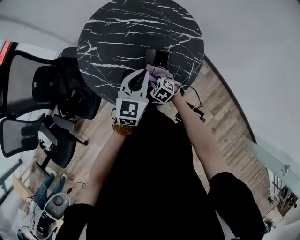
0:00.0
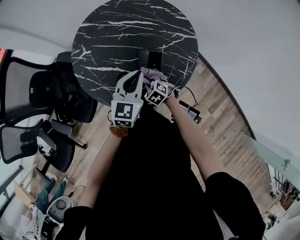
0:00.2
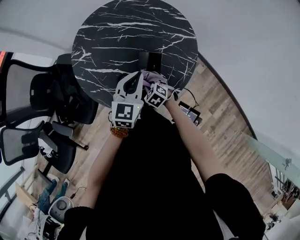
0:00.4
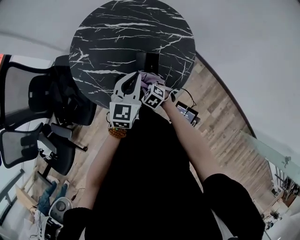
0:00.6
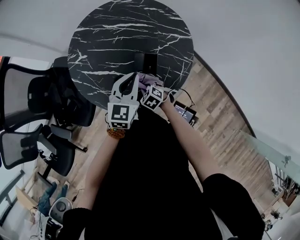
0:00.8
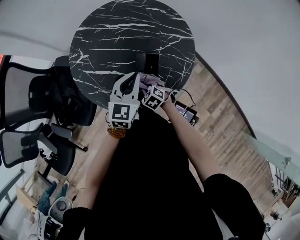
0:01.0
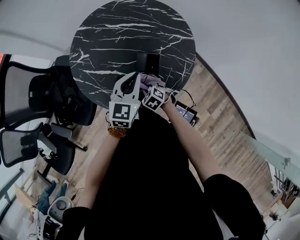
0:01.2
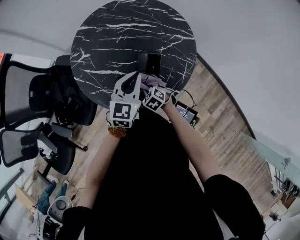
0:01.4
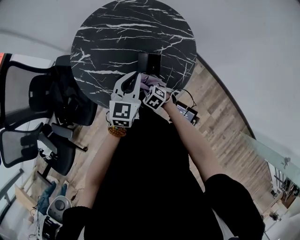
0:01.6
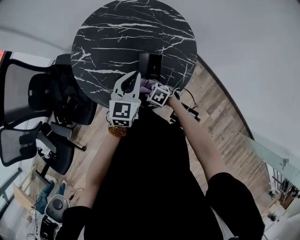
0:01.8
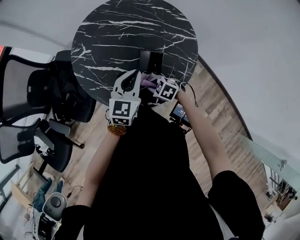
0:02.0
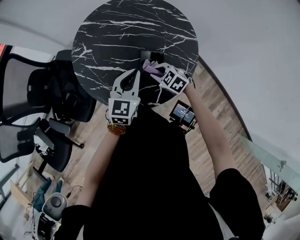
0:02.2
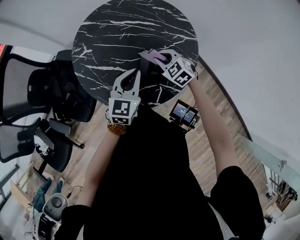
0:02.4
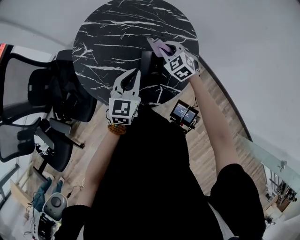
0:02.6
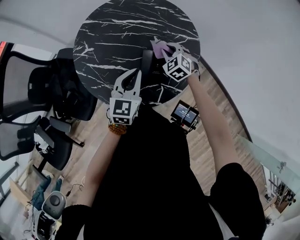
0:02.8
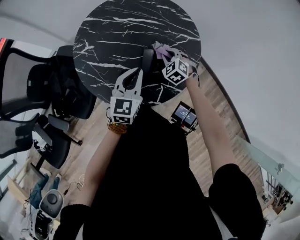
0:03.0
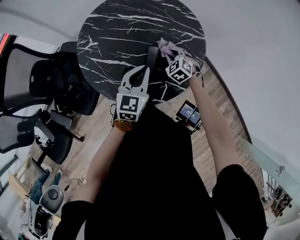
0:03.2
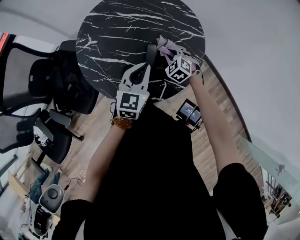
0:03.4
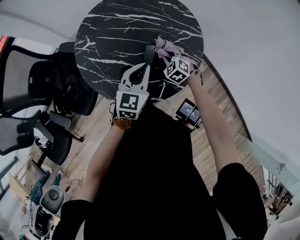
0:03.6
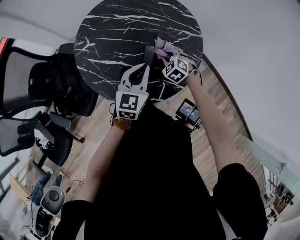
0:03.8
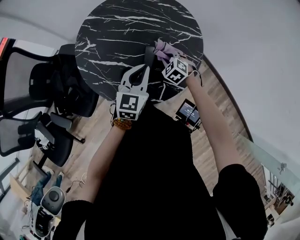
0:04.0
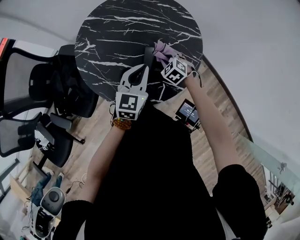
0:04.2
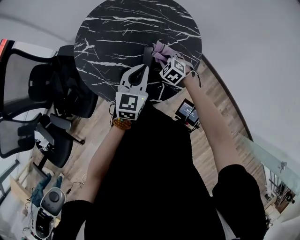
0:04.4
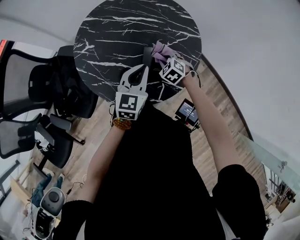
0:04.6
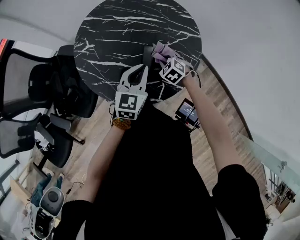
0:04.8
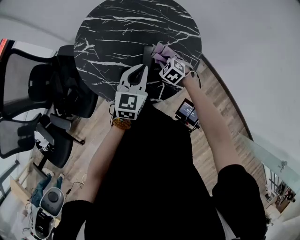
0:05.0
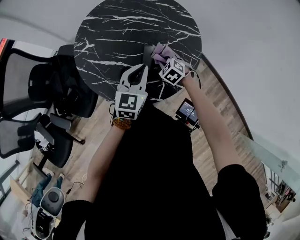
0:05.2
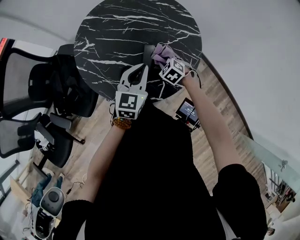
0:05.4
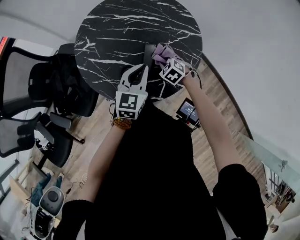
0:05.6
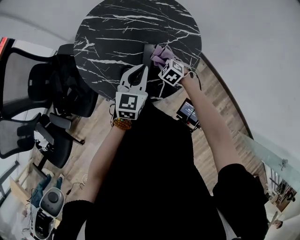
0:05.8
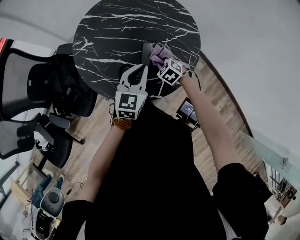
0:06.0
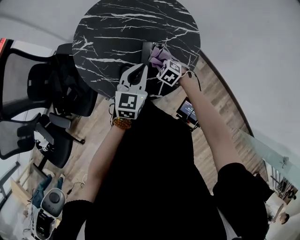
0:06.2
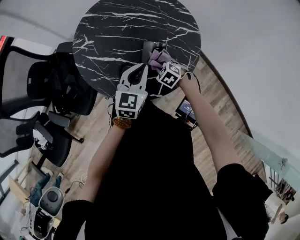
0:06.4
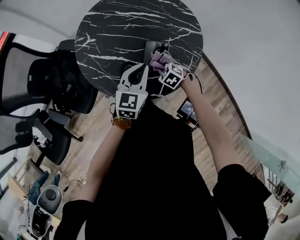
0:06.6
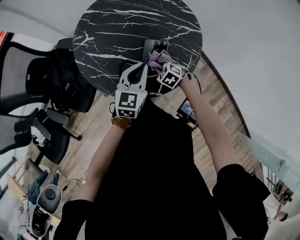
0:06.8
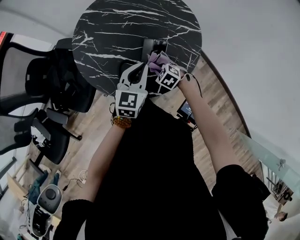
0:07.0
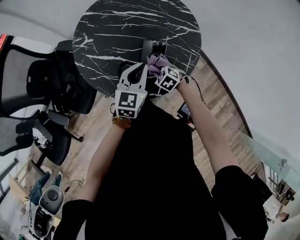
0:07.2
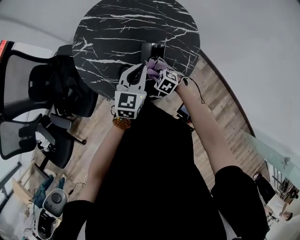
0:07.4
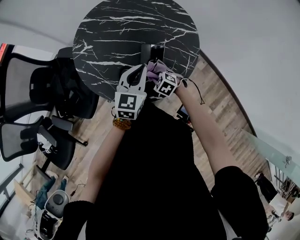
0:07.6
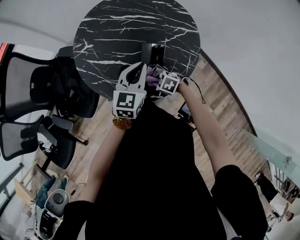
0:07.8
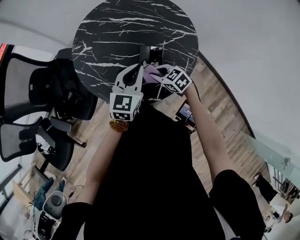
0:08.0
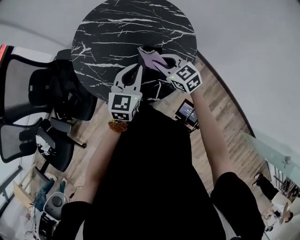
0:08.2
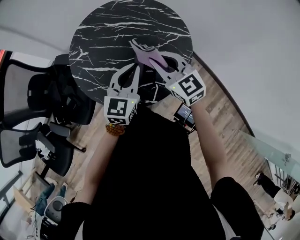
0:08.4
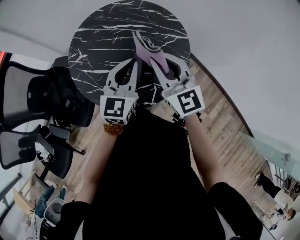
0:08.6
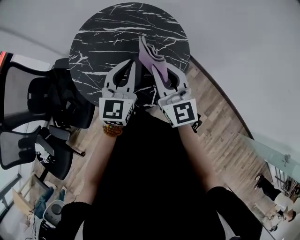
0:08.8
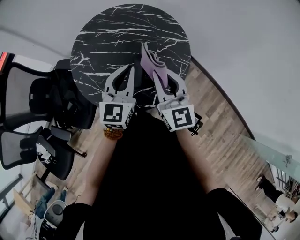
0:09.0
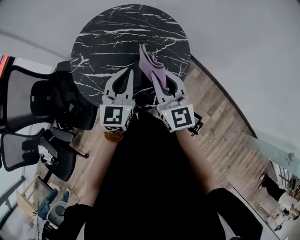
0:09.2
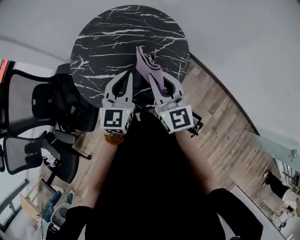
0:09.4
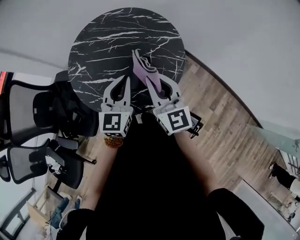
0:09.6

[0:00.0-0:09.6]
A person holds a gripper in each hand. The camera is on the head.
0:00.0 to 0:01.6: The grippers move only a little.
0:01.6 to 0:03.2: The right gripper moves some 20 cm, and swivels some 30 degrees.
0:03.2 to 0:04.8: There are only small adjustments of the grippers.
0:04.8 to 0:06.4: The right gripper moves backward, approximately 5 cm.
0:06.4 to 0:08.0: The right gripper travels upward by about 5 cm, and turns by roughly 30 degrees.
0:08.0 to 0:09.6: The left gripper goes some 5 cm upward. Meanwhile the right gripper shifts about 25 cm upward, and angles its fingers upward, by about 40 degrees.

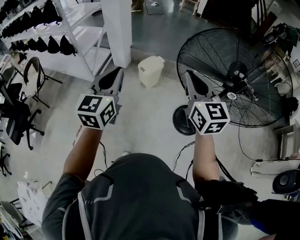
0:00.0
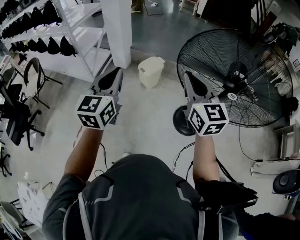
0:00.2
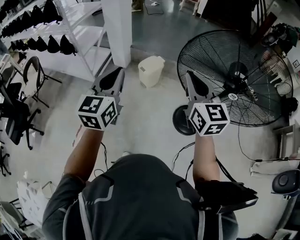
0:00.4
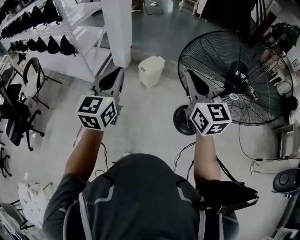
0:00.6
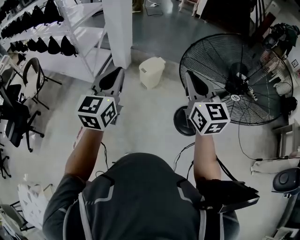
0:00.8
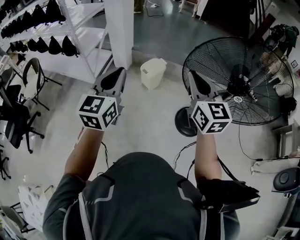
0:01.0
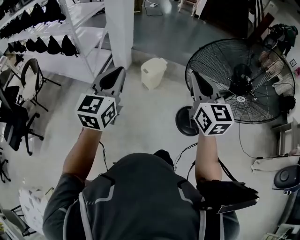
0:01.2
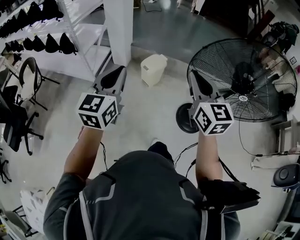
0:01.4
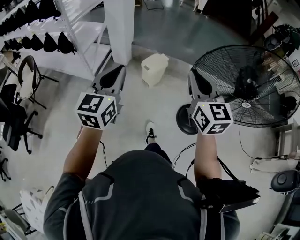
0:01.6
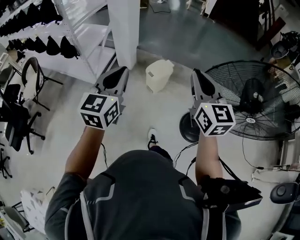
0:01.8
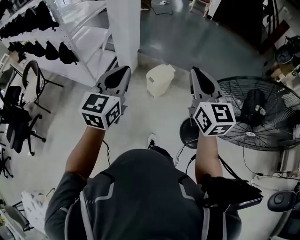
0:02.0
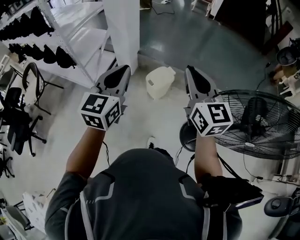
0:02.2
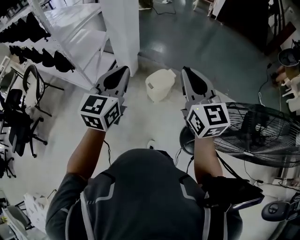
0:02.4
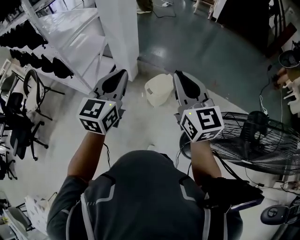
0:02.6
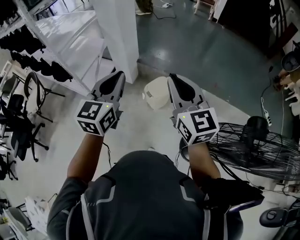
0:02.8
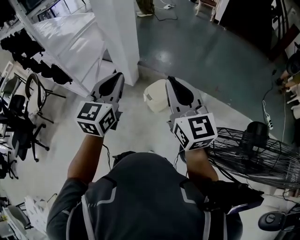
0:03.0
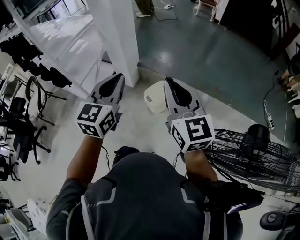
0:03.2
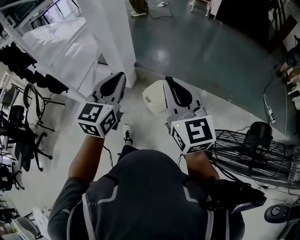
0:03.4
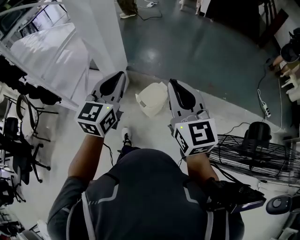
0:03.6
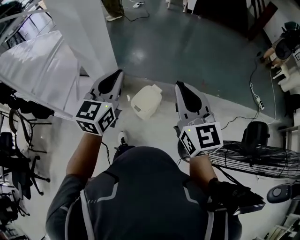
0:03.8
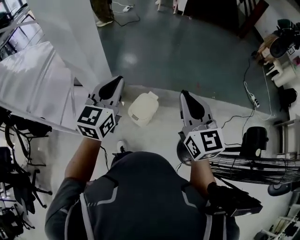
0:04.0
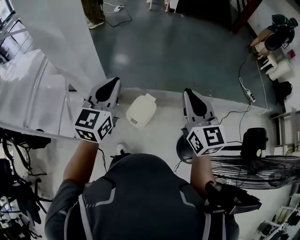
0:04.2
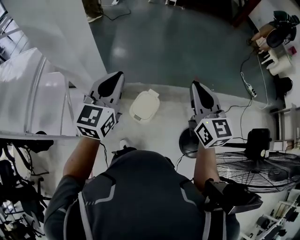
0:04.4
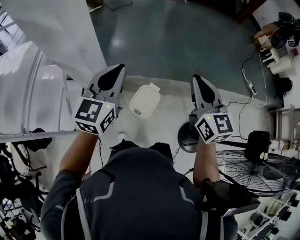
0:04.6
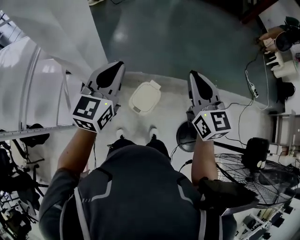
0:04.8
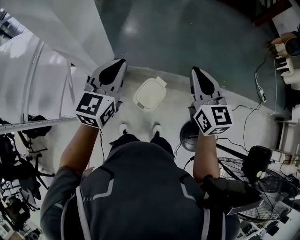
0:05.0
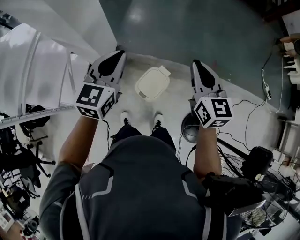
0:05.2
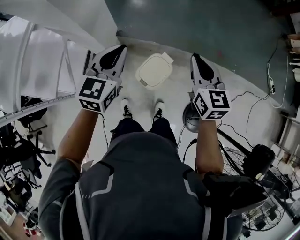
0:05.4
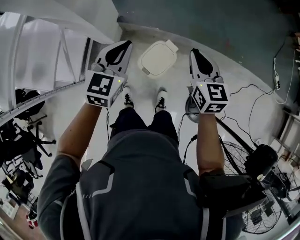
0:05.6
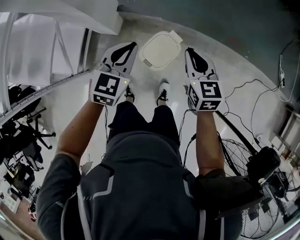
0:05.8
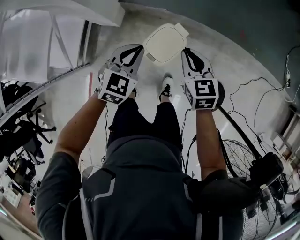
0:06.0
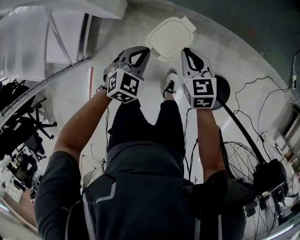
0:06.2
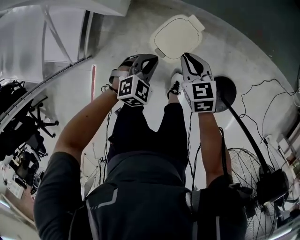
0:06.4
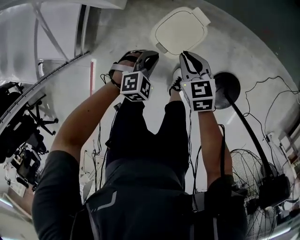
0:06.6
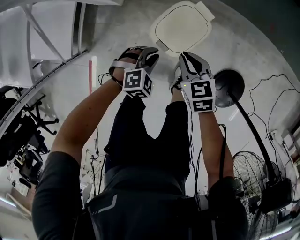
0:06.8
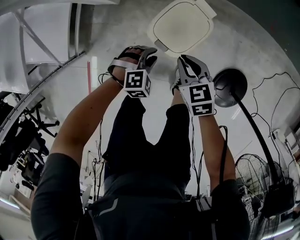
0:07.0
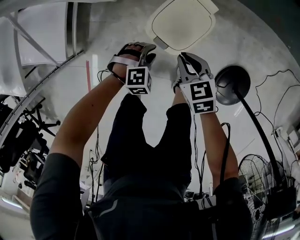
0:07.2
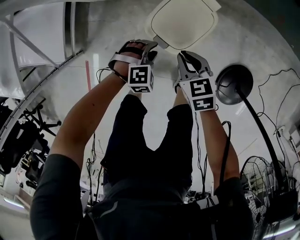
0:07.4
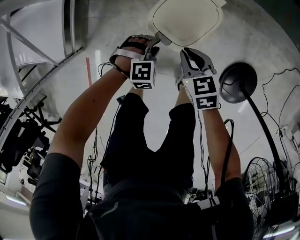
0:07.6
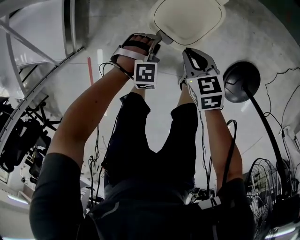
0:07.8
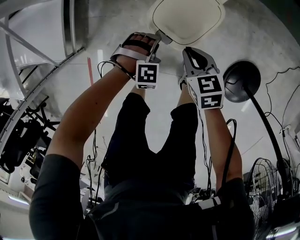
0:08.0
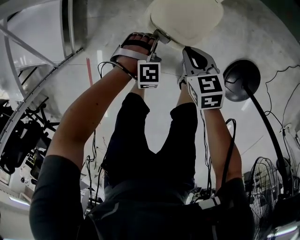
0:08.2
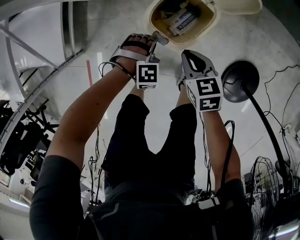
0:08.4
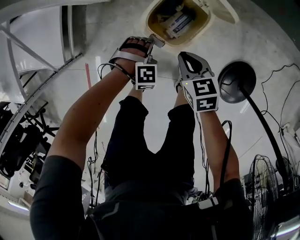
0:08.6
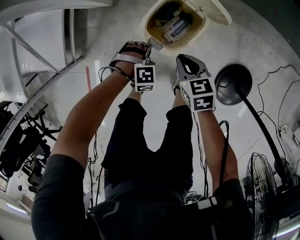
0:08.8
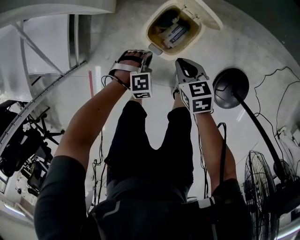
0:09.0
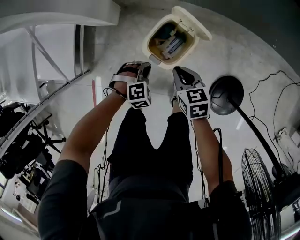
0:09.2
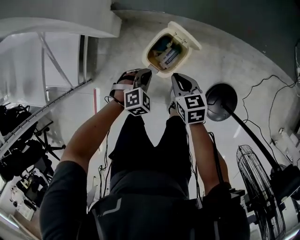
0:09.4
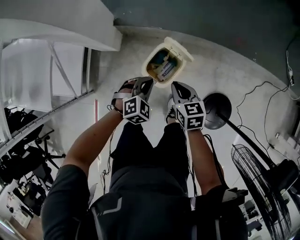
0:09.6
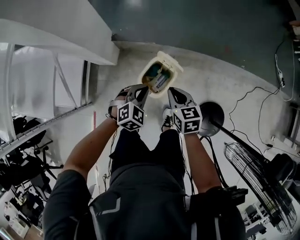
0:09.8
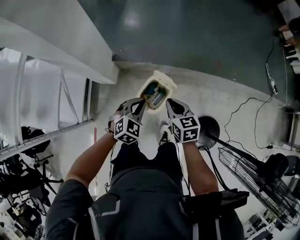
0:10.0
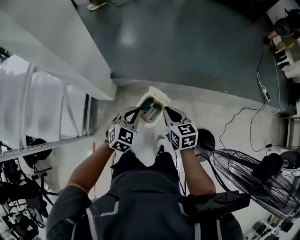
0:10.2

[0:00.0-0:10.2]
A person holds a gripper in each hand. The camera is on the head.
0:00.0 to 0:01.4: The grippers both shift to the left by roughly 10 cm.
0:01.4 to 0:03.0: Both grippers move forward, some 35 cm.
0:03.0 to 0:04.4: The left gripper changes place by approximately 30 cm, and turns by about 20 degrees, while the right gripper ends up some 25 cm from where it was, and changes its angle by approximately 30 degrees.
0:04.4 to 0:05.8: The grippers both shift downward by approximately 30 cm. The left gripper changes its angle by about 20 degrees. Meanwhile the right gripper rotates approximately 30 degrees.
0:05.8 to 0:07.2: The two grippers go roughly 40 cm downward. The right gripper rotates roughly 20 degrees. Meanwhile the left gripper tilts its fingers approximately 40 degrees downward, and opens.
0:08.8 to 0:10.2: The two grippers go approximately 40 cm upward. The left gripper tips its fingers upward by approximately 40 degrees. Meanwhile the right gripper changes its angle by approximately 20 degrees.

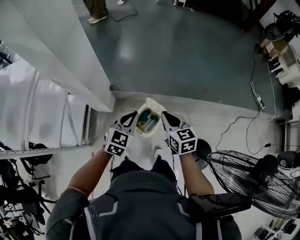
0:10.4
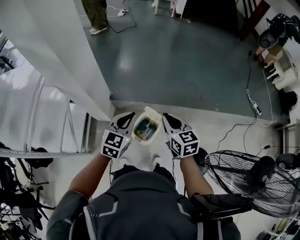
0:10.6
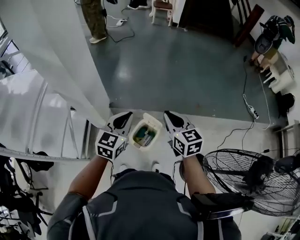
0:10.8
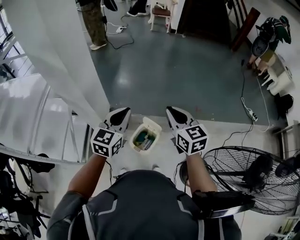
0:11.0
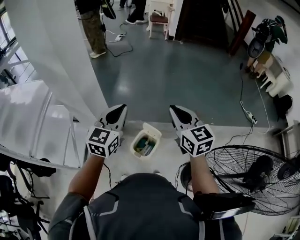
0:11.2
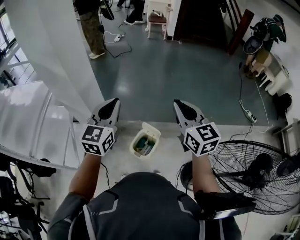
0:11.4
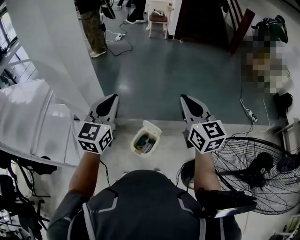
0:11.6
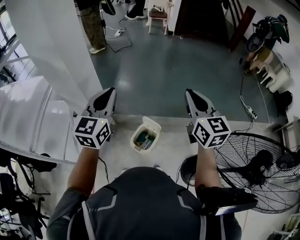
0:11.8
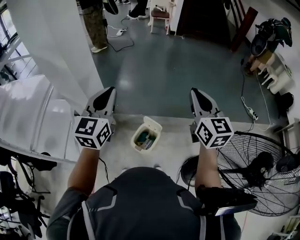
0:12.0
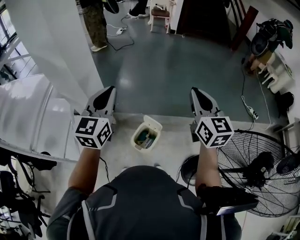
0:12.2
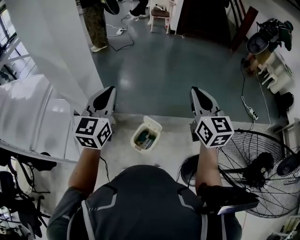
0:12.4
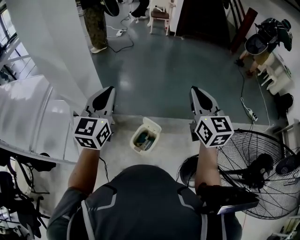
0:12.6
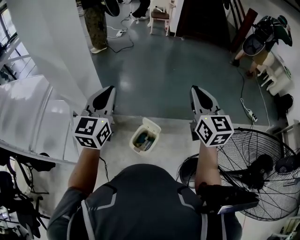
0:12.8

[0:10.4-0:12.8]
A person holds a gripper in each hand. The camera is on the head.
0:10.4 to 0:11.6: The grippers both shift upward by roughly 30 cm. The left gripper rotates roughly 30 degrees, while the right gripper changes its angle by some 30 degrees.
0:11.6 to 0:12.8: There are only small adjustments of the grippers.

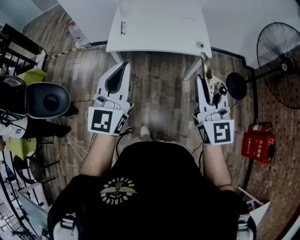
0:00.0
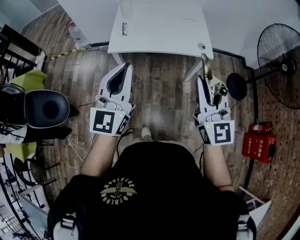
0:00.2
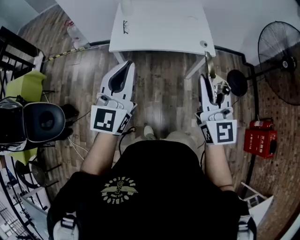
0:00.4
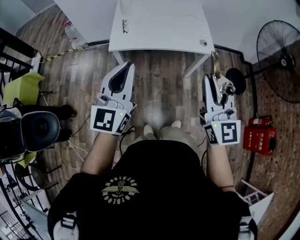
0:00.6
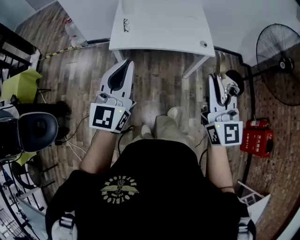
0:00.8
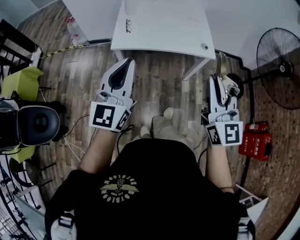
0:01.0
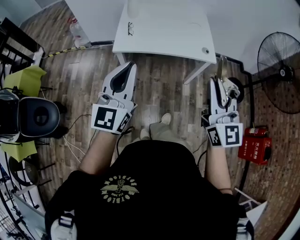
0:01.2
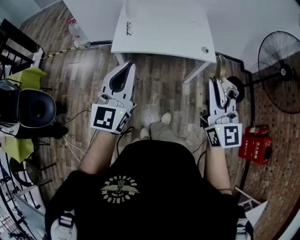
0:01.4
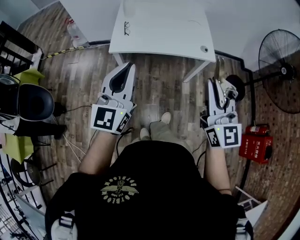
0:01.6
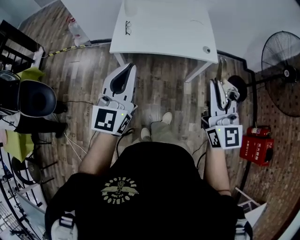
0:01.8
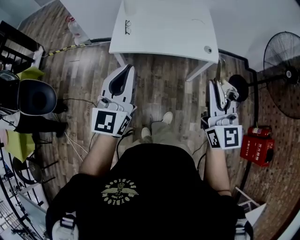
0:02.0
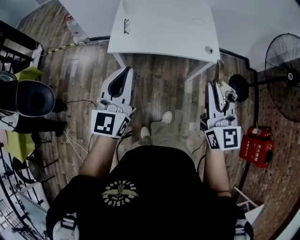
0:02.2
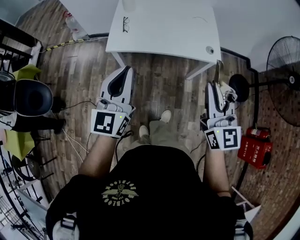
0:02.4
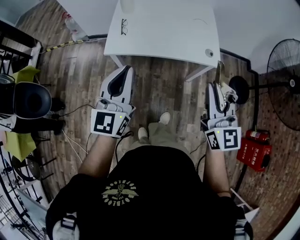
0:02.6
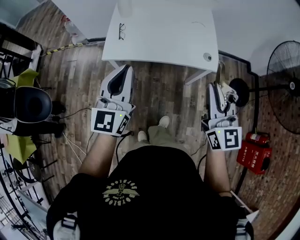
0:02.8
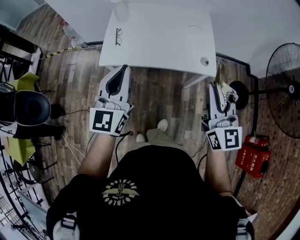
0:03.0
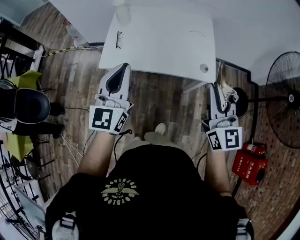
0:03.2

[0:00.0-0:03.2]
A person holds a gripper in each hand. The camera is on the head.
0:00.0 to 0:01.6: The left gripper travels to the left by approximately 5 cm.
0:01.6 to 0:03.2: The right gripper is displaced forward and to the right by approximately 25 cm. The left gripper is displaced forward by some 20 cm.
